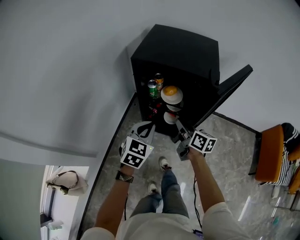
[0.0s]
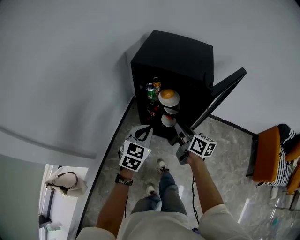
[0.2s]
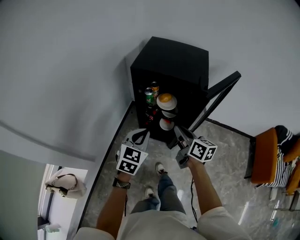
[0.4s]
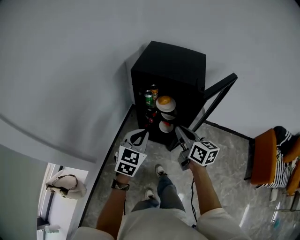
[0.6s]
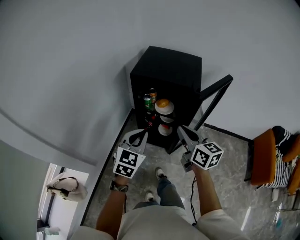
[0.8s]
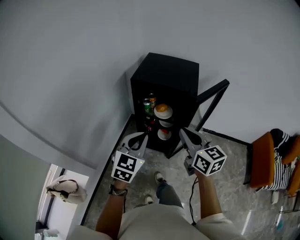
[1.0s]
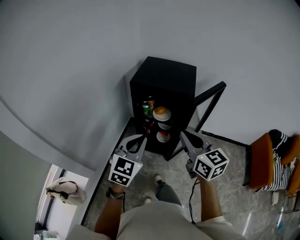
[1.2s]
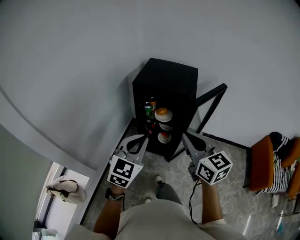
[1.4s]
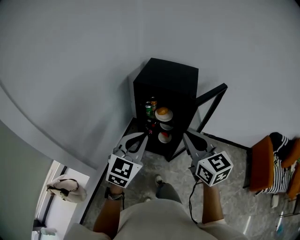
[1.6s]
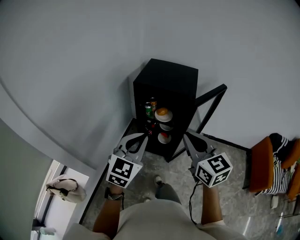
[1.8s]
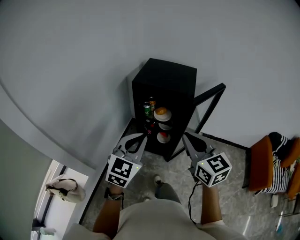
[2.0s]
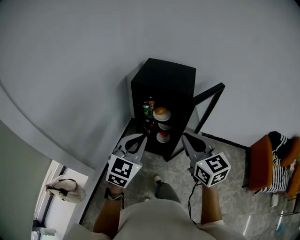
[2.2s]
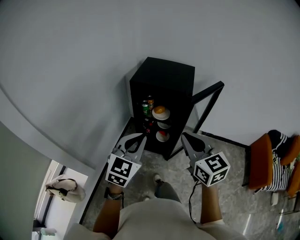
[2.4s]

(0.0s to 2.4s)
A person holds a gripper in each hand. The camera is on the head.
0.0s - 1.2s: The left gripper travels upward by about 15 cm.

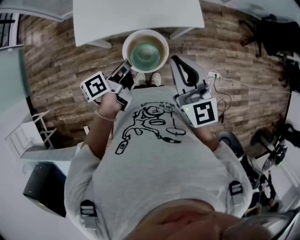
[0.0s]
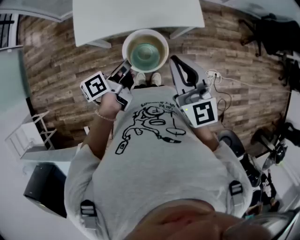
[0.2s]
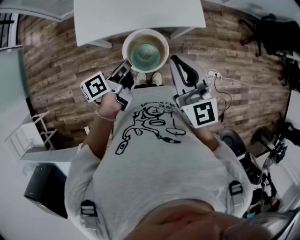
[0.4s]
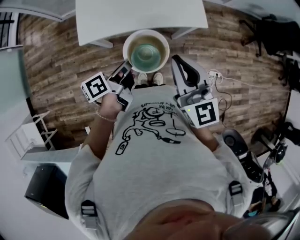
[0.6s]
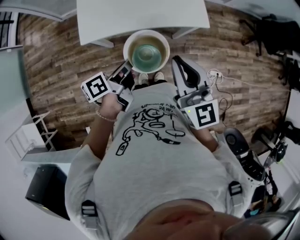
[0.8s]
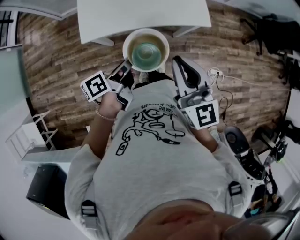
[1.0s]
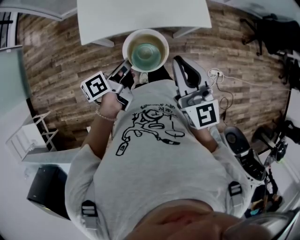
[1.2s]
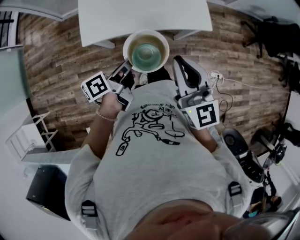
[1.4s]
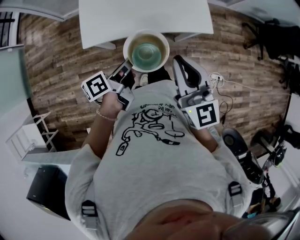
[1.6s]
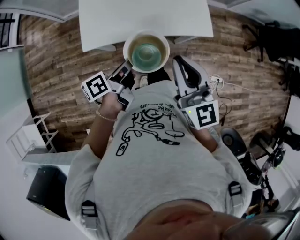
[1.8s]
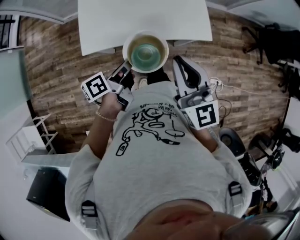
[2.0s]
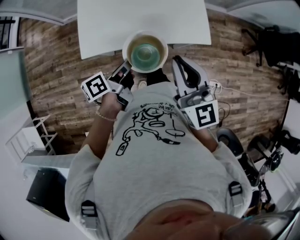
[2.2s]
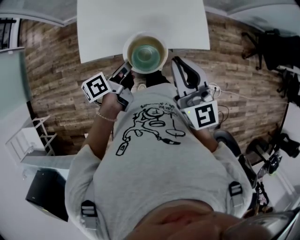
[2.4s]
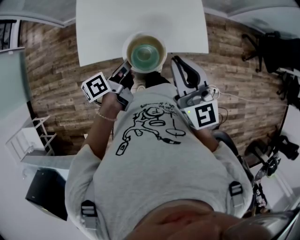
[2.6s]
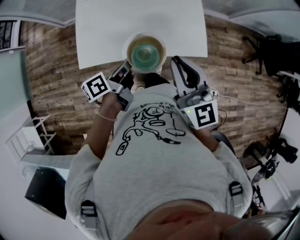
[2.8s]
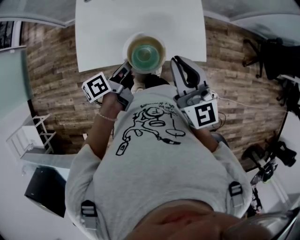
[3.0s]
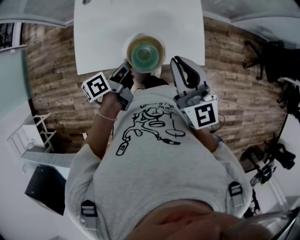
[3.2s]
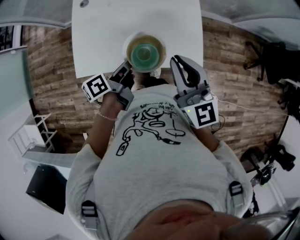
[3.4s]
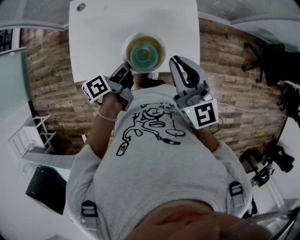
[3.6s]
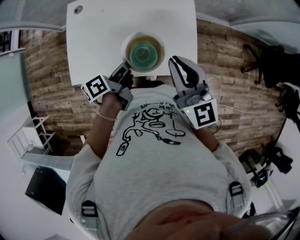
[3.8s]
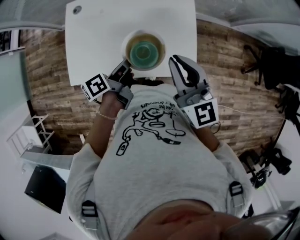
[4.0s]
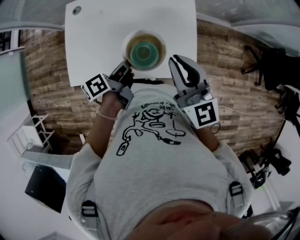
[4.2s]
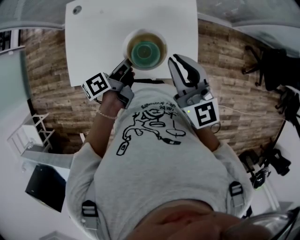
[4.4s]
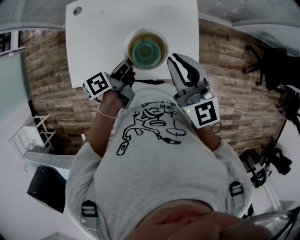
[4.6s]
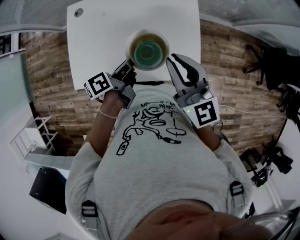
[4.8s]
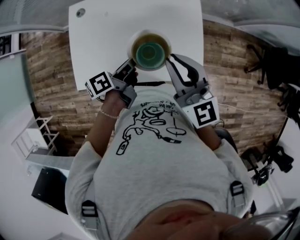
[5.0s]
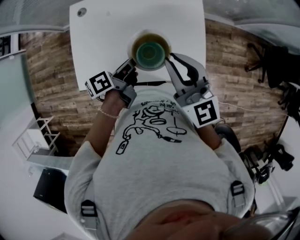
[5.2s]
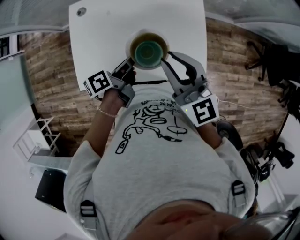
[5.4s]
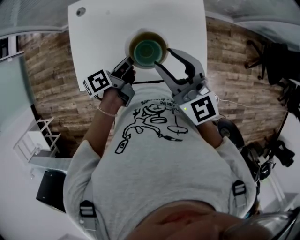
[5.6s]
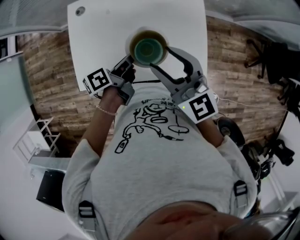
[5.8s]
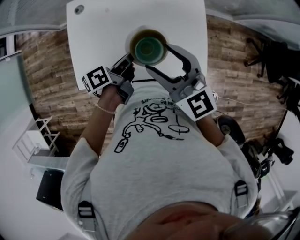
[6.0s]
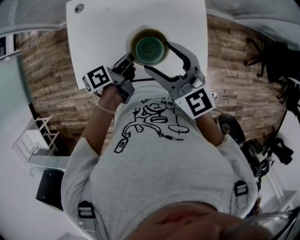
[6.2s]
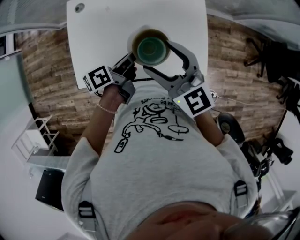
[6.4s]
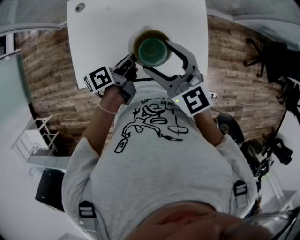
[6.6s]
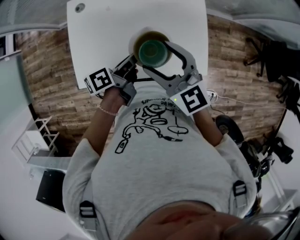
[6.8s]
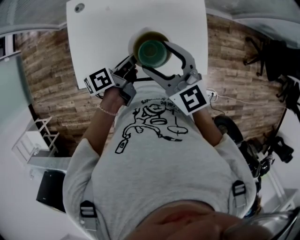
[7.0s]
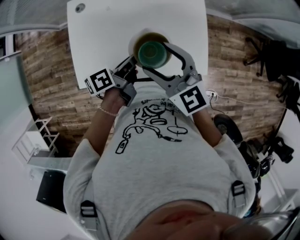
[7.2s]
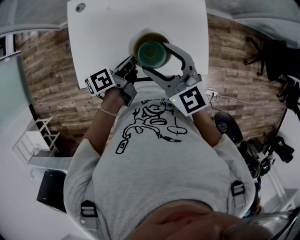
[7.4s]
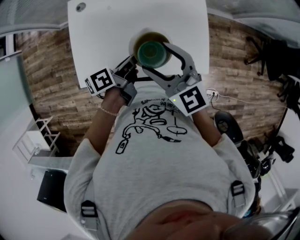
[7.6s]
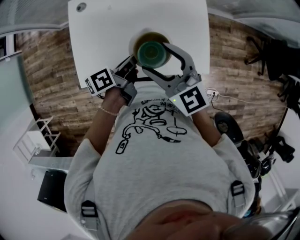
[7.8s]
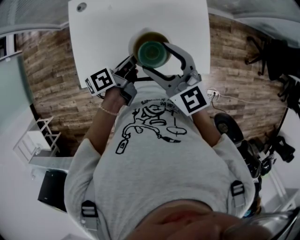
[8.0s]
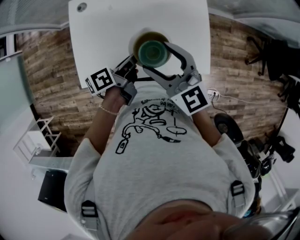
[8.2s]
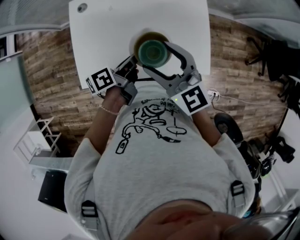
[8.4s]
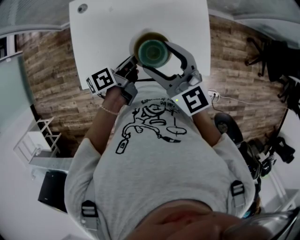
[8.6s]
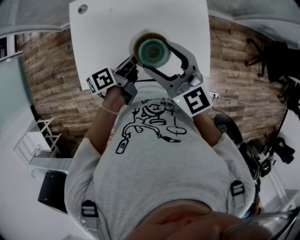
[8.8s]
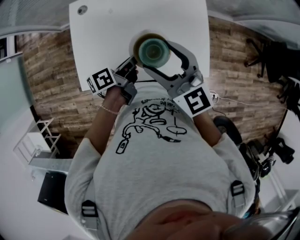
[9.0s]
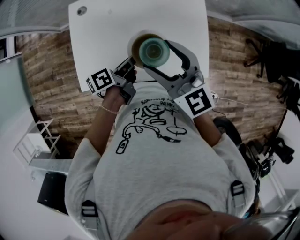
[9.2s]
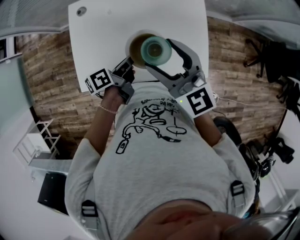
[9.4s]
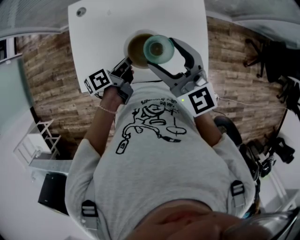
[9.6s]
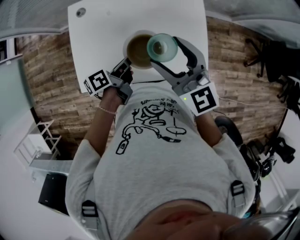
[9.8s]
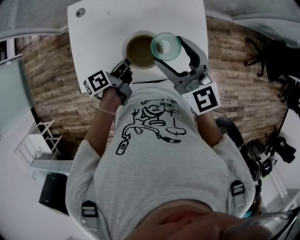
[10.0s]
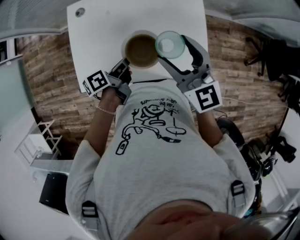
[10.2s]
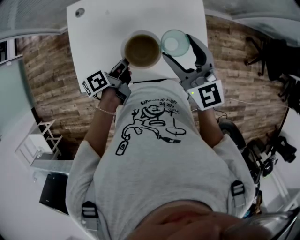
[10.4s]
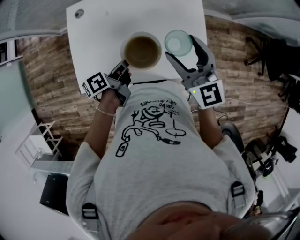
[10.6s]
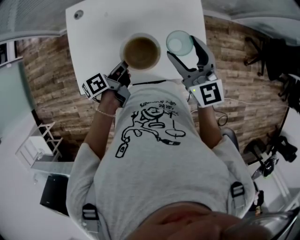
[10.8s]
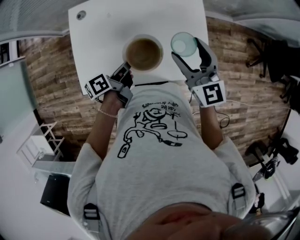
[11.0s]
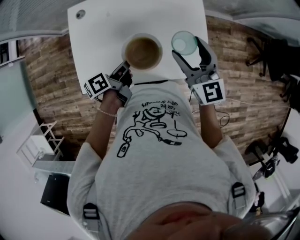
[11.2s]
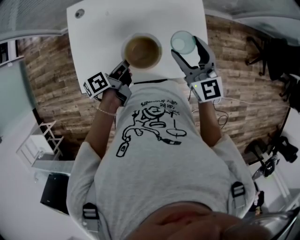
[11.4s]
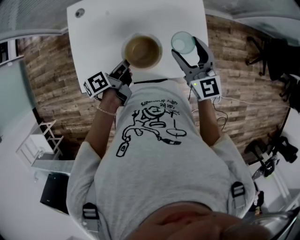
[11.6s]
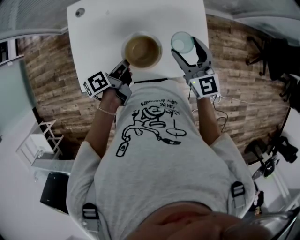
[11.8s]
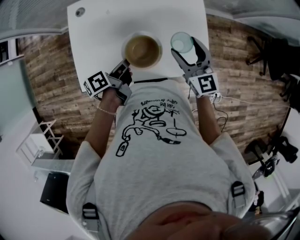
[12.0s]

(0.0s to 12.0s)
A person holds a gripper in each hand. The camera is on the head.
0.0s - 1.6s: The right gripper ends up approximately 5 cm from where it was.
1.6s - 3.0s: The right gripper ends up some 20 cm from where it was.
3.0s - 4.4s: The right gripper moves roughly 15 cm.
4.4s - 6.0s: The right gripper changes place by roughly 15 cm, and opens its fingers.
9.0s - 10.4s: The right gripper shifts by about 10 cm.
10.4s - 12.0s: The right gripper goes approximately 10 cm downward.

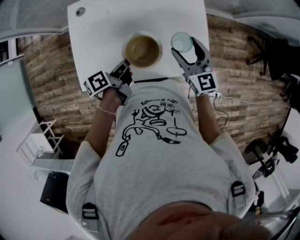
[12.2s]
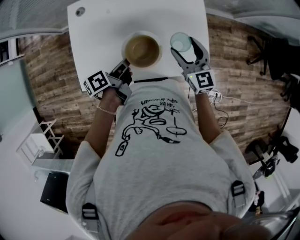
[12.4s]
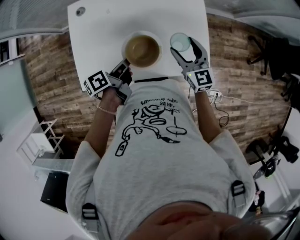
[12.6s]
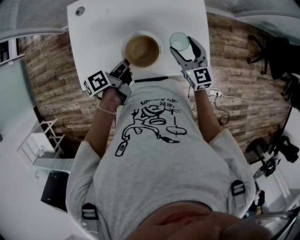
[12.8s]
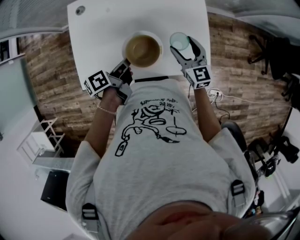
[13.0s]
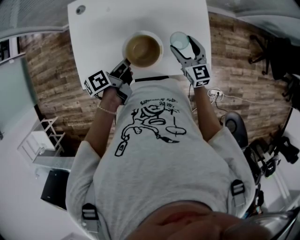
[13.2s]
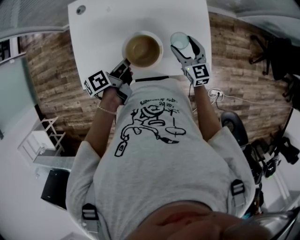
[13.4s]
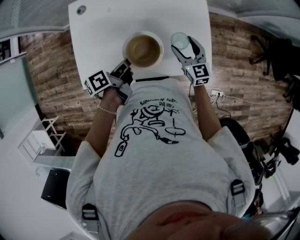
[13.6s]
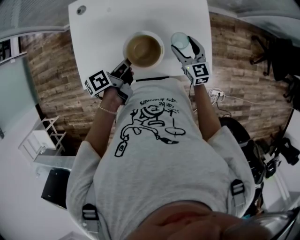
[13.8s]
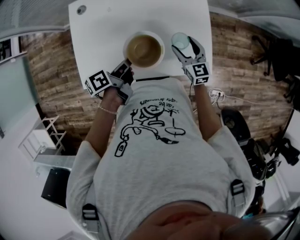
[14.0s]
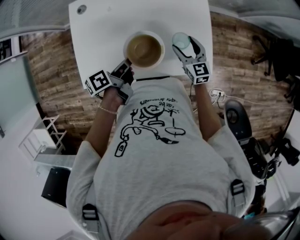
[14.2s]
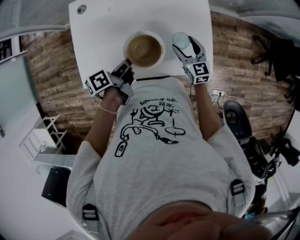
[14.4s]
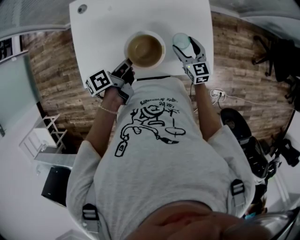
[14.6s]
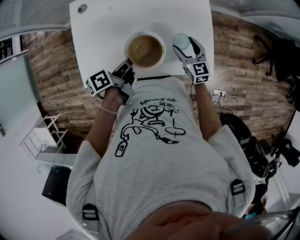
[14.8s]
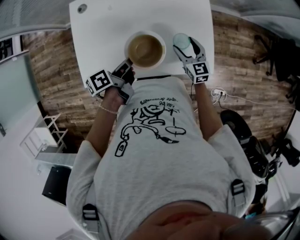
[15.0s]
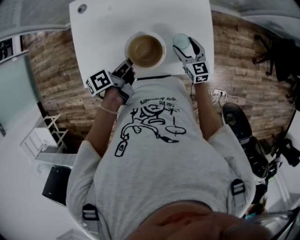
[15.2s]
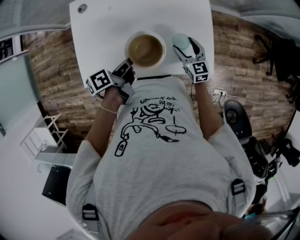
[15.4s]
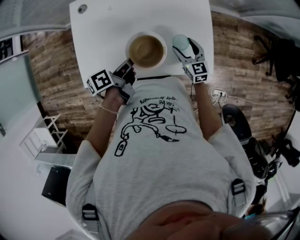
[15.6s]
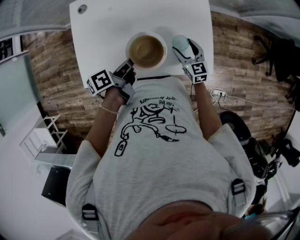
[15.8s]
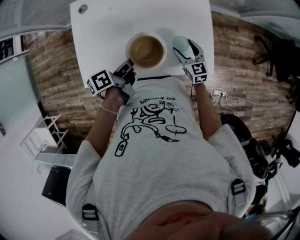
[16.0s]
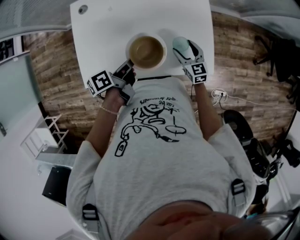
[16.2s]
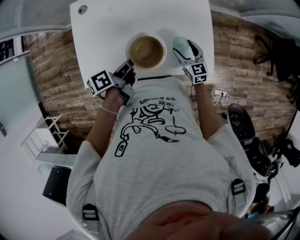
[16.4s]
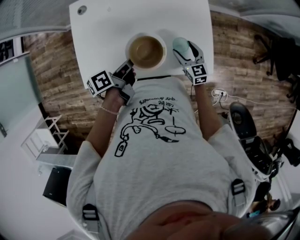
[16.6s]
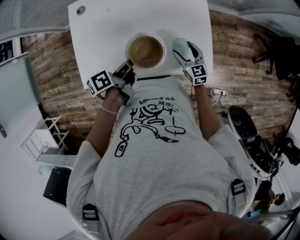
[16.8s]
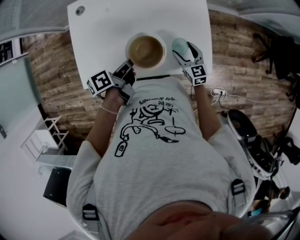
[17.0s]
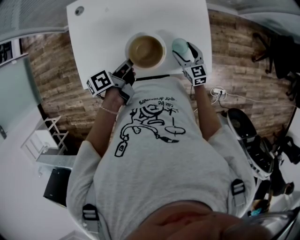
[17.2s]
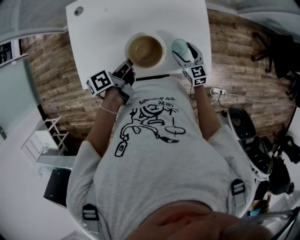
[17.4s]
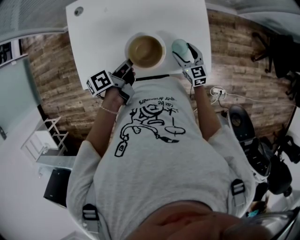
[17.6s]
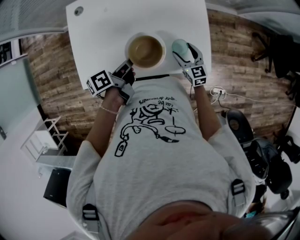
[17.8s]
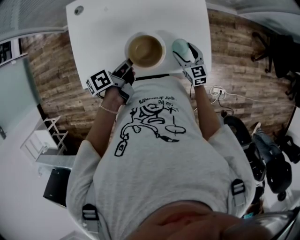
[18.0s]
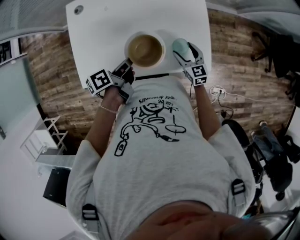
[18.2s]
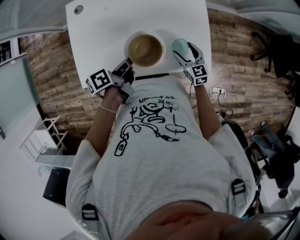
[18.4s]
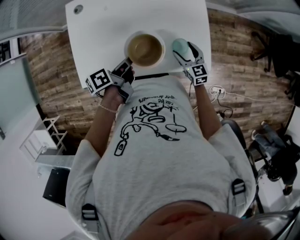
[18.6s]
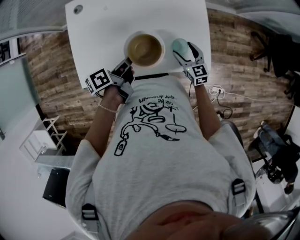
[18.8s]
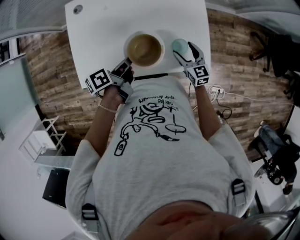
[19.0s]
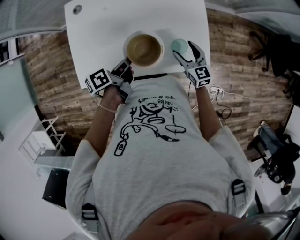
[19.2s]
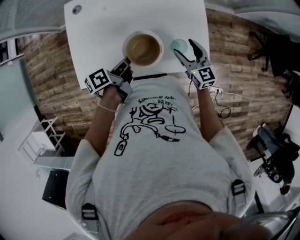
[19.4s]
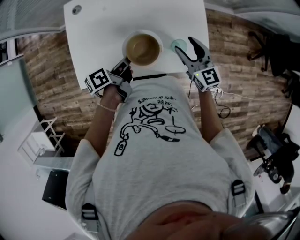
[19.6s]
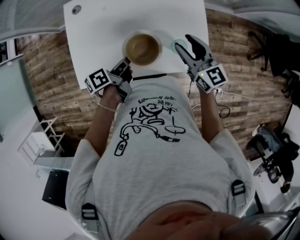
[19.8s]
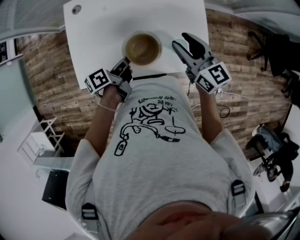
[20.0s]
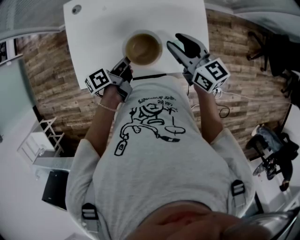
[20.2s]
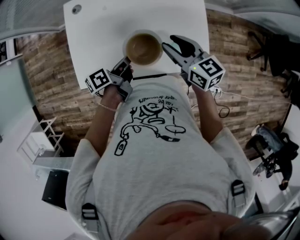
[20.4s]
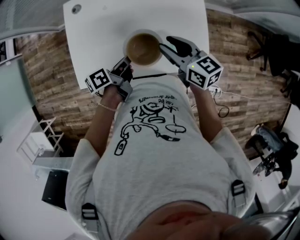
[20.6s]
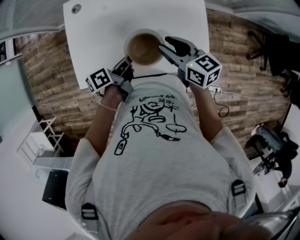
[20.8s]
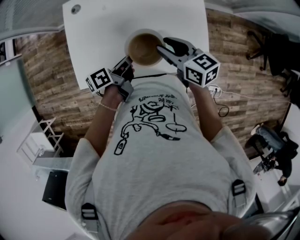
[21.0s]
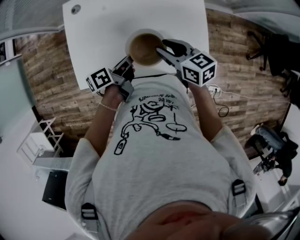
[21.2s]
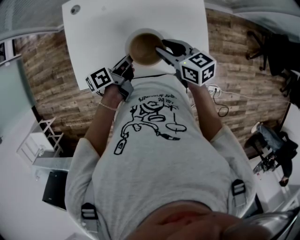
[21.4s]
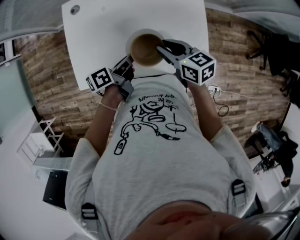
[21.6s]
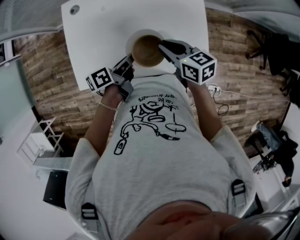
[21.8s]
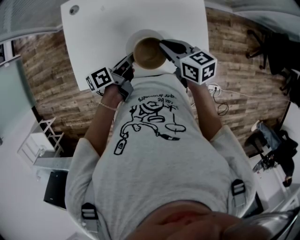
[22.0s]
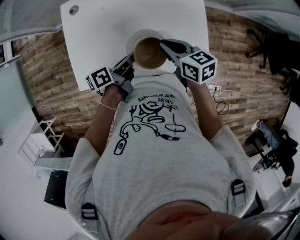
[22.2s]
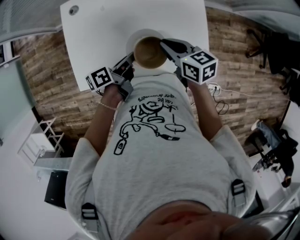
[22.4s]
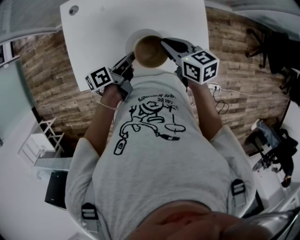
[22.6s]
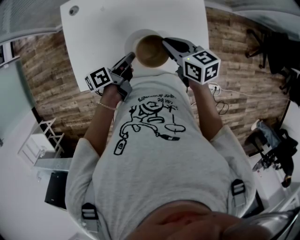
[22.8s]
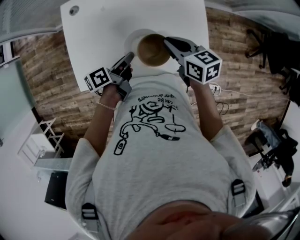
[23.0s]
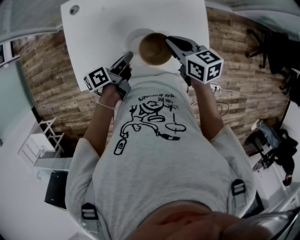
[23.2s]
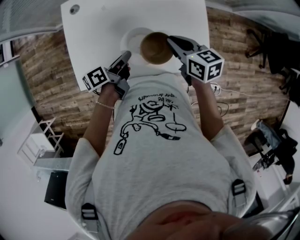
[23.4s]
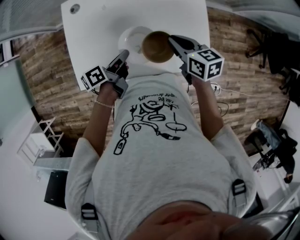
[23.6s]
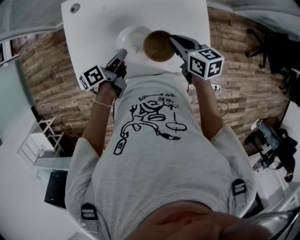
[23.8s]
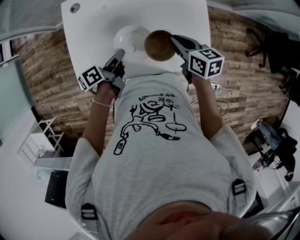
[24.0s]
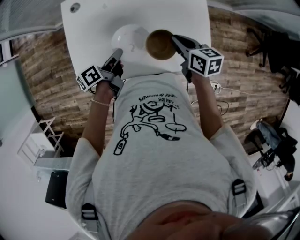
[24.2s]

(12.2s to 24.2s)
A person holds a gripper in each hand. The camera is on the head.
12.2s - 13.8s: The right gripper shifts approximately 10 cm downward.
18.2s - 19.8s: The right gripper shifts approximately 20 cm upward, and closes.
19.8s - 21.2s: The right gripper changes place by some 10 cm, and turns by roughly 30 degrees.
21.2s - 22.6s: The right gripper closes up.
